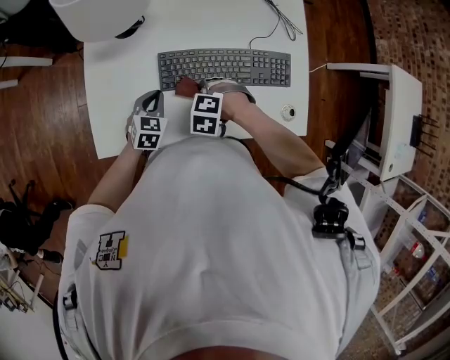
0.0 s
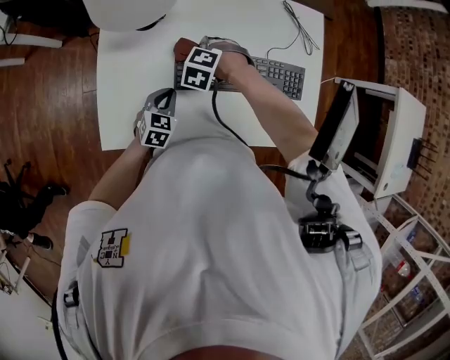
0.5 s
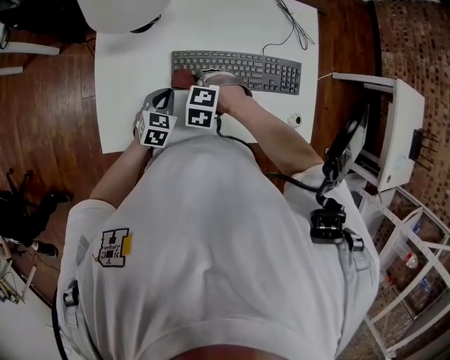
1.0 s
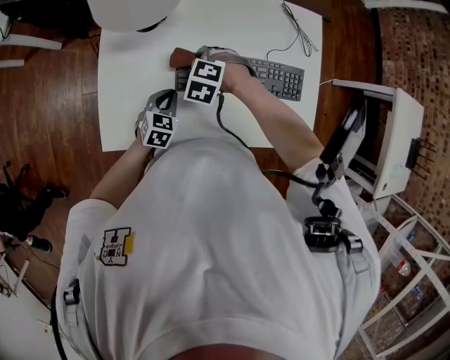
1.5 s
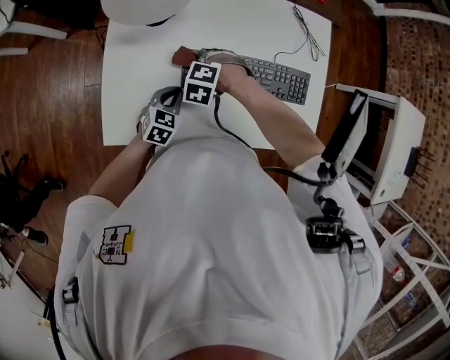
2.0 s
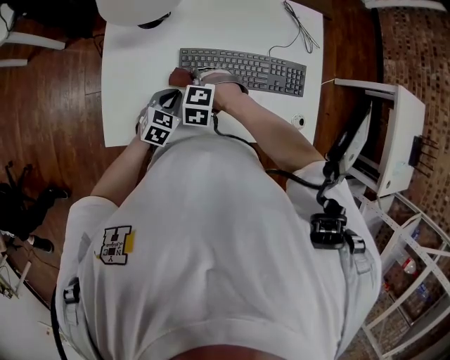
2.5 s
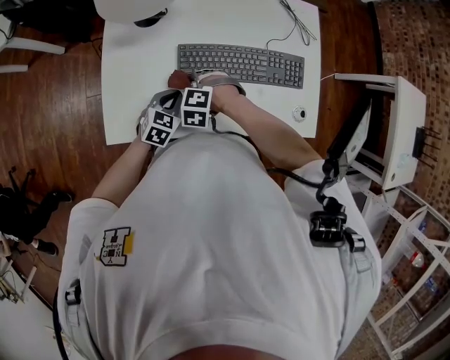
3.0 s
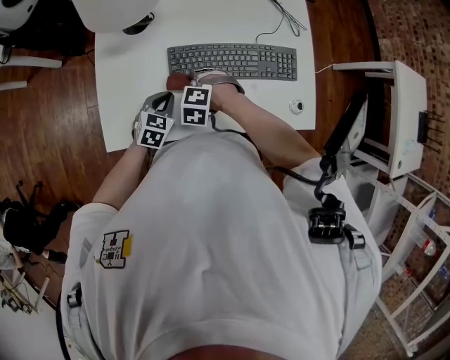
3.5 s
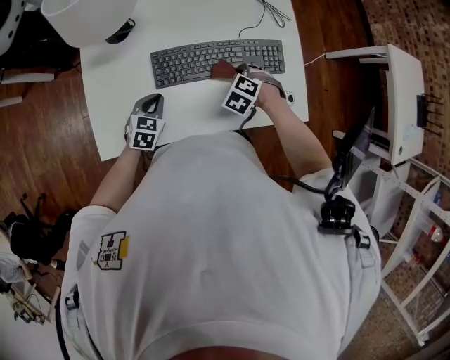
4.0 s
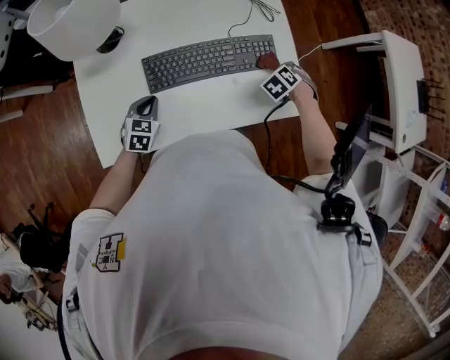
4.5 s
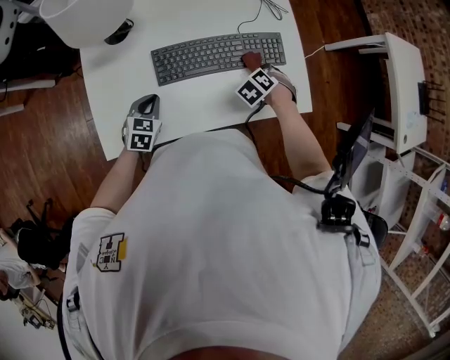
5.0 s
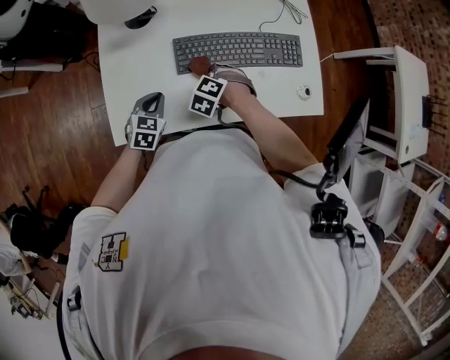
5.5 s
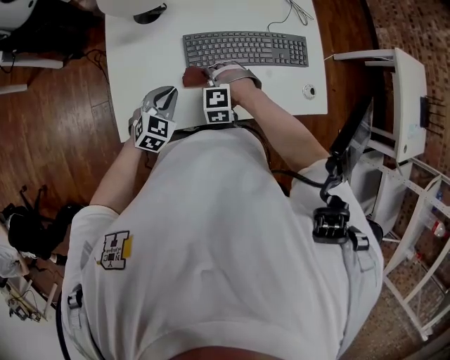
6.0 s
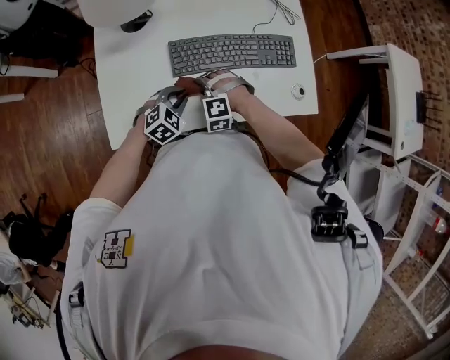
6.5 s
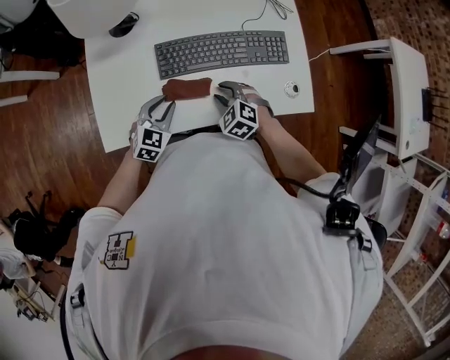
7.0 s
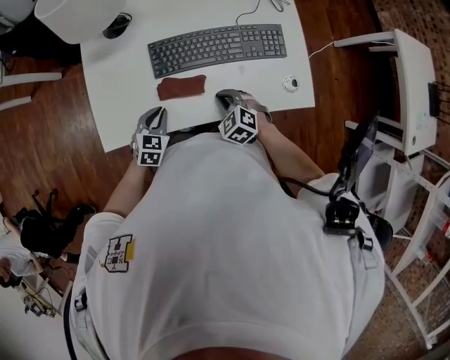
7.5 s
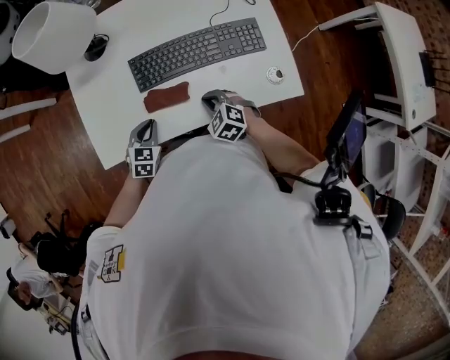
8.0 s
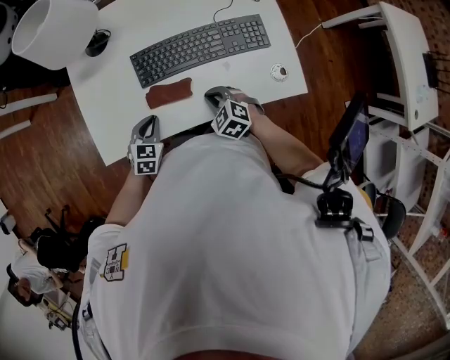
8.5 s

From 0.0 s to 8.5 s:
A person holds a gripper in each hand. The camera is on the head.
From 4.0 s to 6.5 s: The left gripper changes place by about 5 cm, and swivels roughly 30 degrees.
From 6.5 s to 8.5 s: The left gripper changes place by roughly 5 cm, and swivels some 30 degrees.

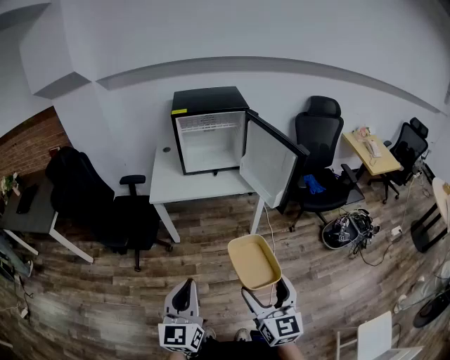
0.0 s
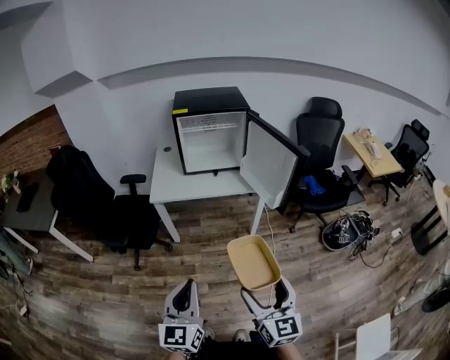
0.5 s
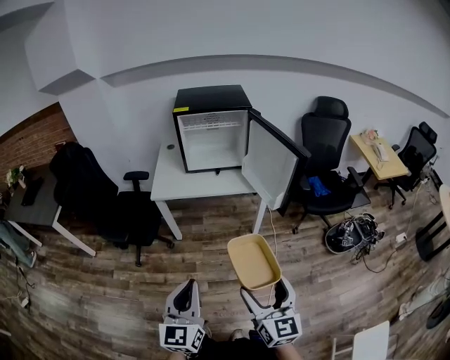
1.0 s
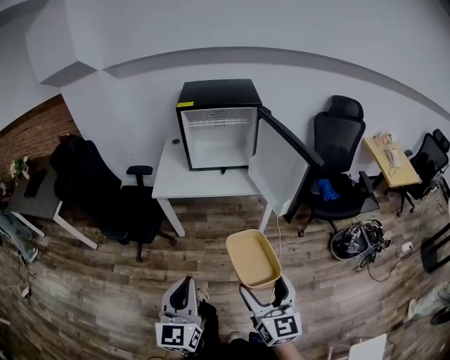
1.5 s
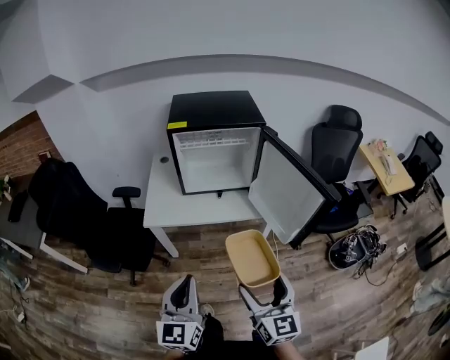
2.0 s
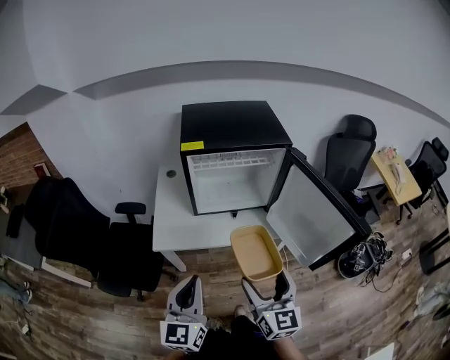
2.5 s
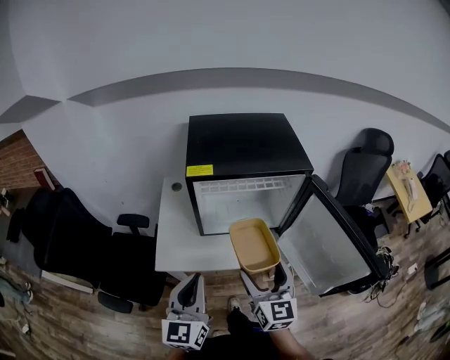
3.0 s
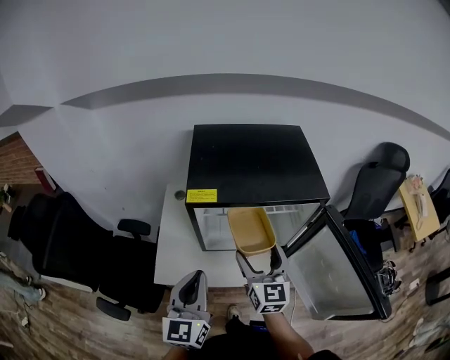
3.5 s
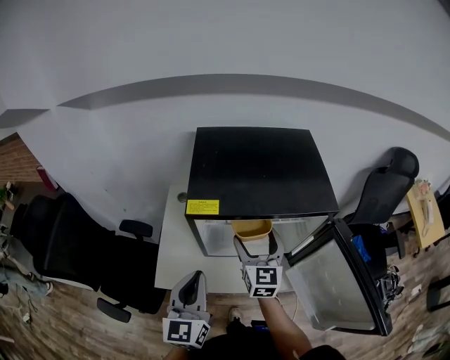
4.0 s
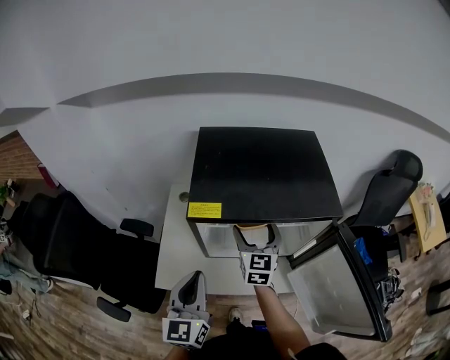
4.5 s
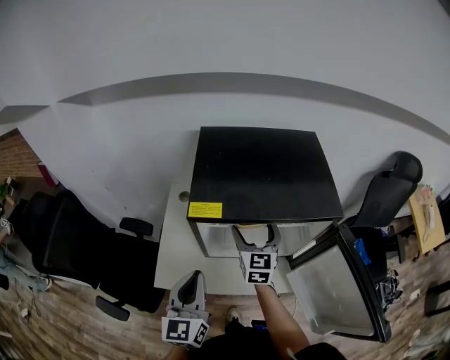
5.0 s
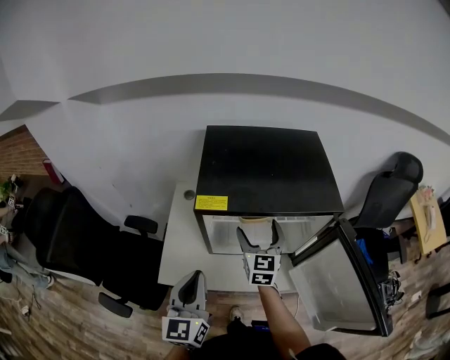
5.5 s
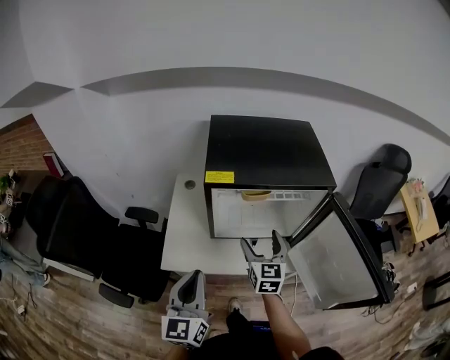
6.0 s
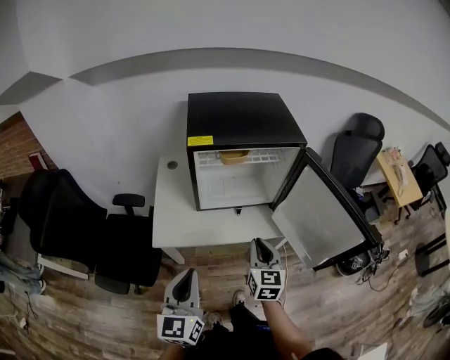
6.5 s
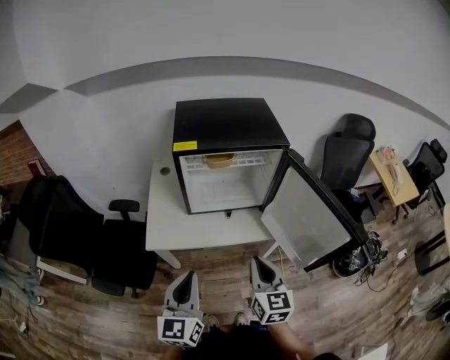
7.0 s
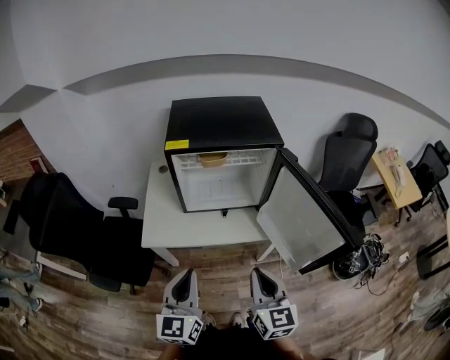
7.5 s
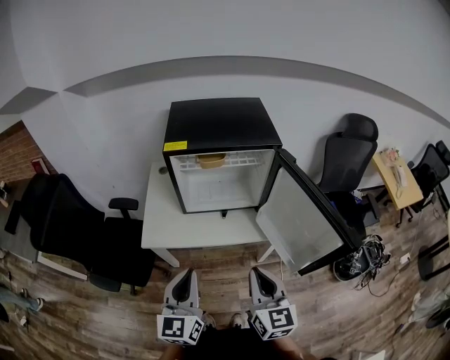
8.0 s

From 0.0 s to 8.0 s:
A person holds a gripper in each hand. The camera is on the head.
From 0.0 s to 2.0 s: The grippers both shift forward by about 25 cm.
From 2.0 s to 4.0 s: Both grippers are carried forward, approximately 50 cm.
From 4.0 s to 6.0 s: Both grippers travel together backward, about 10 cm.
From 6.0 s to 8.0 s: The left gripper moves backward and to the right, approximately 15 cm. Meanwhile the right gripper is displaced backward by some 30 cm, and closes its fingers.

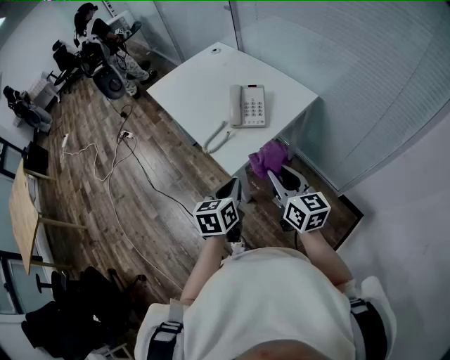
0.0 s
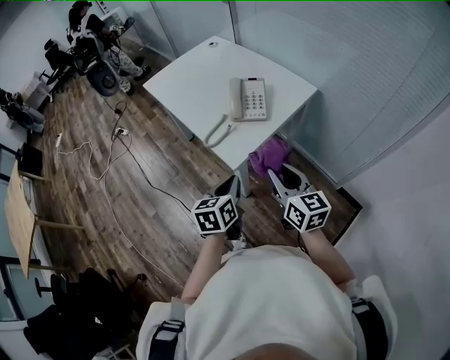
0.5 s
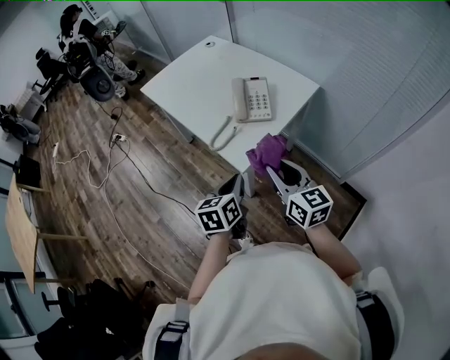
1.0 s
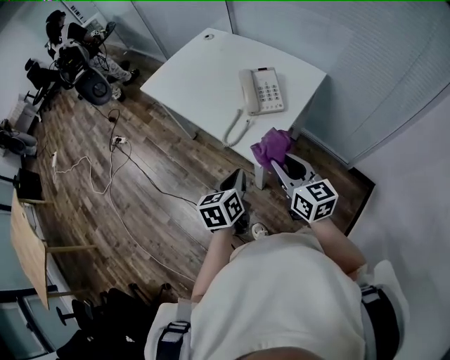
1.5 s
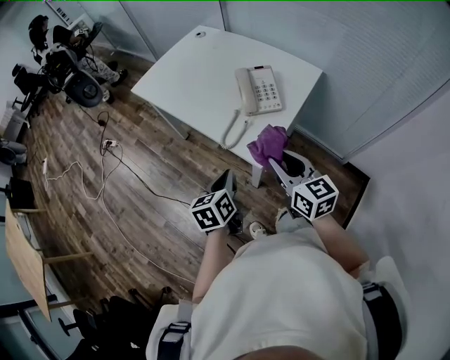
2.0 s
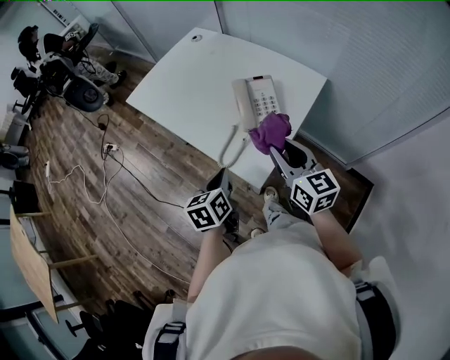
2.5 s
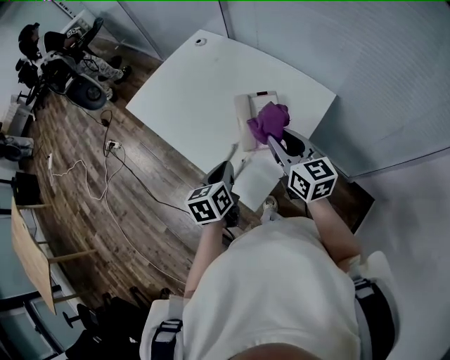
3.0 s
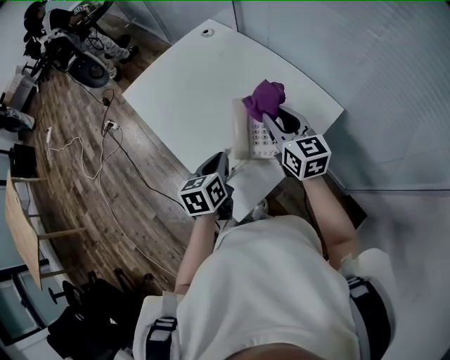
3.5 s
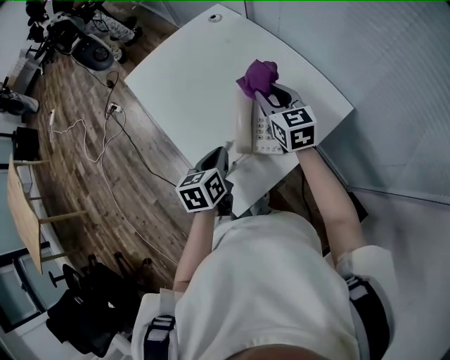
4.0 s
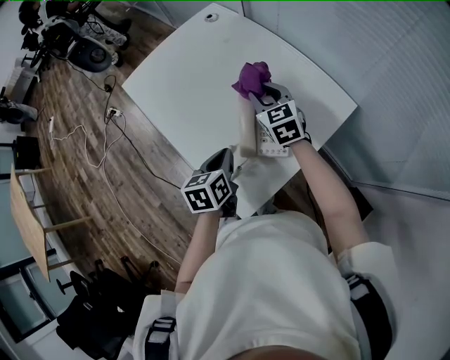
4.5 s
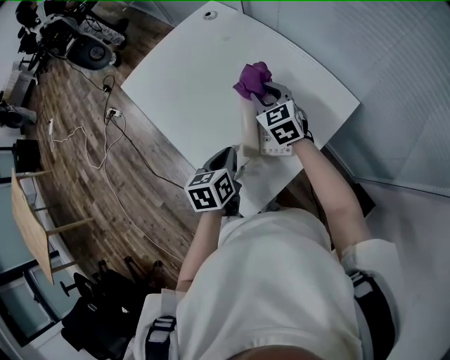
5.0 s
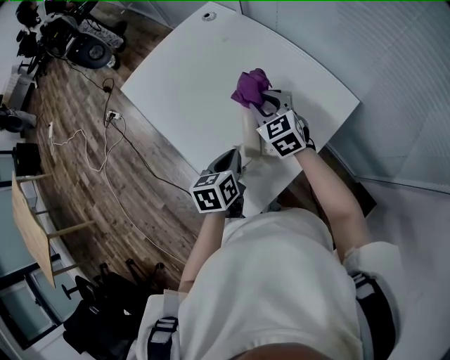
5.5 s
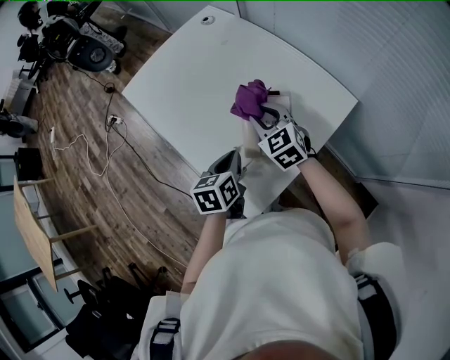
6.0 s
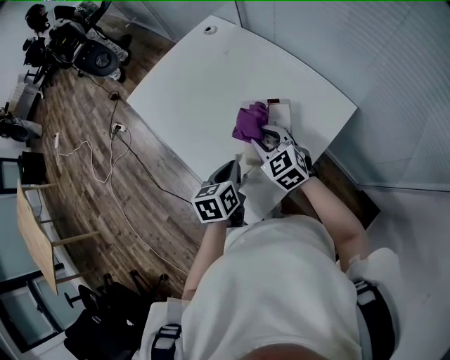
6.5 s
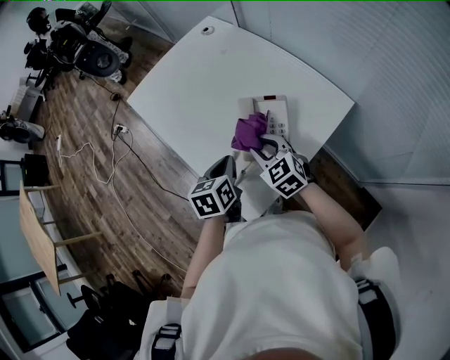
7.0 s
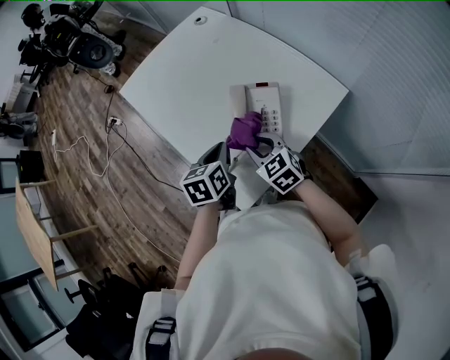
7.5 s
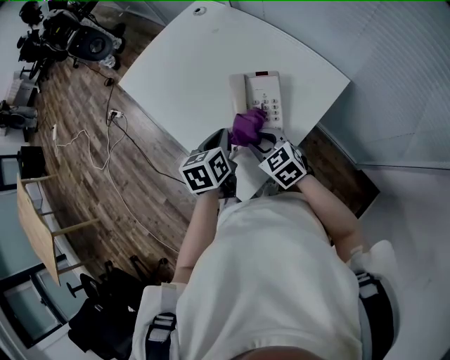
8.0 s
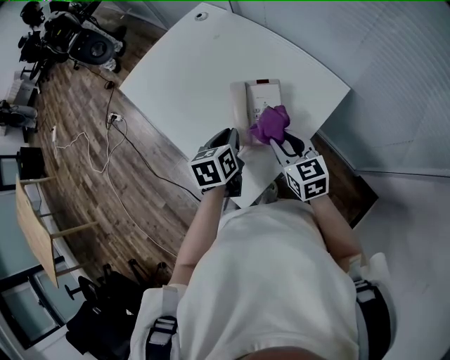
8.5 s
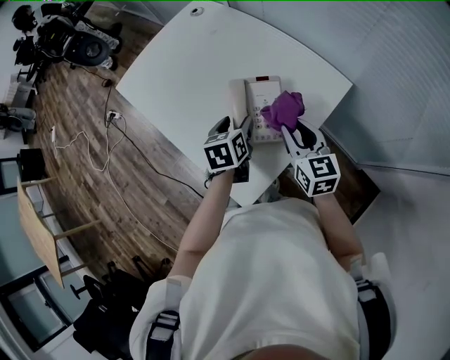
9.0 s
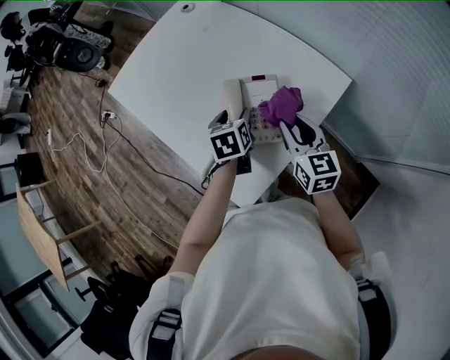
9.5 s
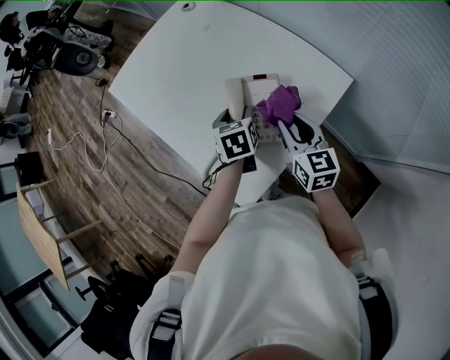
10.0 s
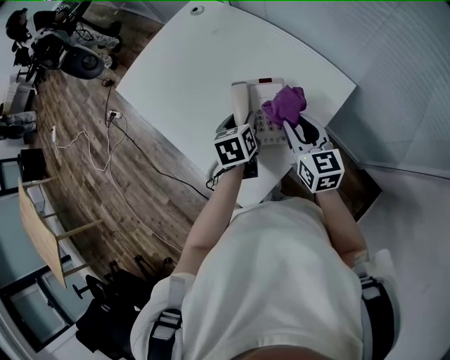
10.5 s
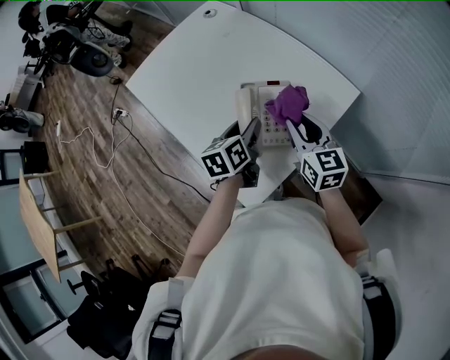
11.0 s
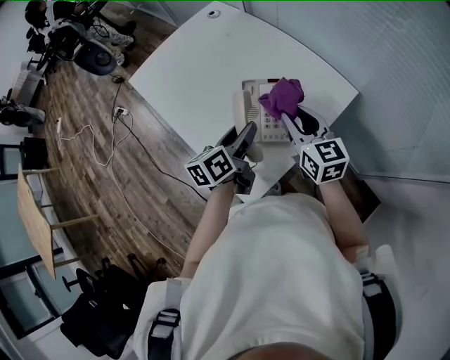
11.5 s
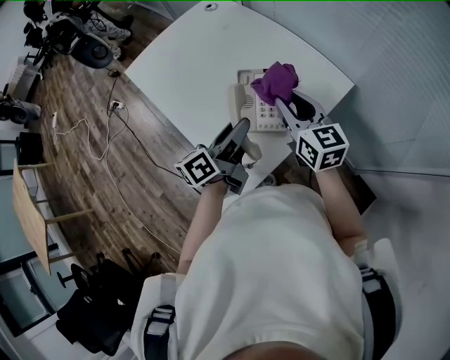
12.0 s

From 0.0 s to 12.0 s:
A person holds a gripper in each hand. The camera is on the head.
From 0.0 s to 2.0 s: The left gripper is displaced to the left and forward by about 15 cm. Meanwhile the right gripper heads to the left, covering some 15 cm.
From 2.0 s to 4.0 s: The right gripper moves forward, some 40 cm. Meanwhile the left gripper shifts approximately 25 cm forward.
From 4.0 s to 6.0 s: The right gripper is displaced downward by approximately 5 cm, and changes its angle by some 20 degrees.
From 6.0 s to 8.0 s: The right gripper is displaced backward by roughly 15 cm.
From 8.0 s to 10.0 s: The right gripper travels to the right, forward and upward by about 15 cm, and rotates approximately 40 degrees, while the left gripper moves forward and to the right, approximately 15 cm, and opens up.
From 10.0 s to 12.0 s: The left gripper moves upward and backward, some 15 cm, and tilts its fingers about 40 degrees upward; the right gripper moves upward, some 10 cm.
